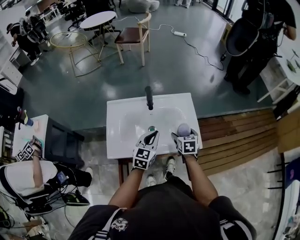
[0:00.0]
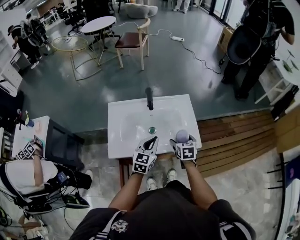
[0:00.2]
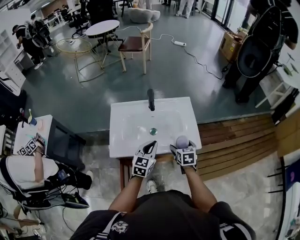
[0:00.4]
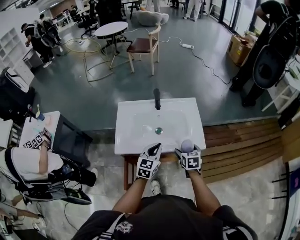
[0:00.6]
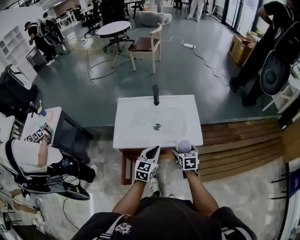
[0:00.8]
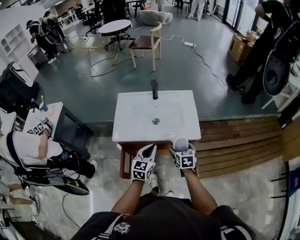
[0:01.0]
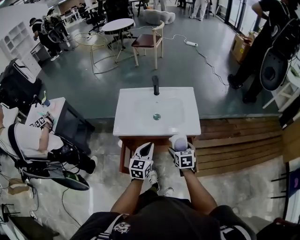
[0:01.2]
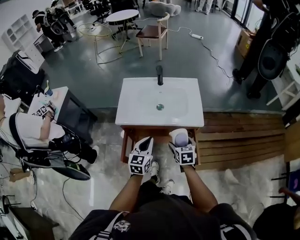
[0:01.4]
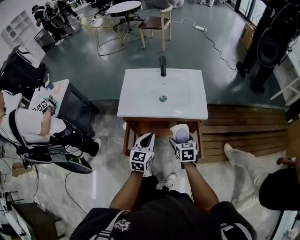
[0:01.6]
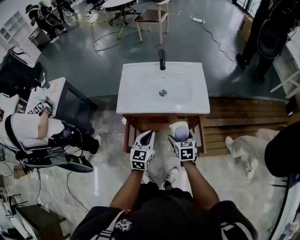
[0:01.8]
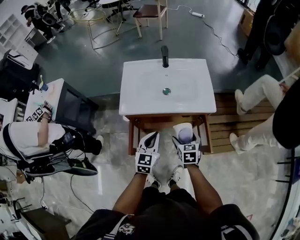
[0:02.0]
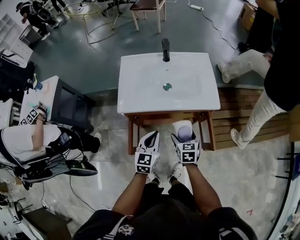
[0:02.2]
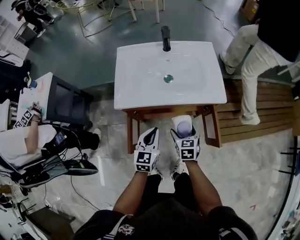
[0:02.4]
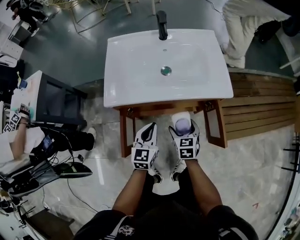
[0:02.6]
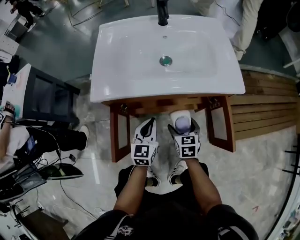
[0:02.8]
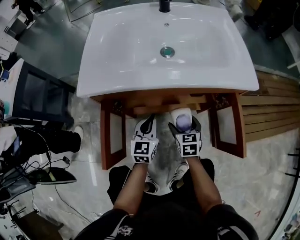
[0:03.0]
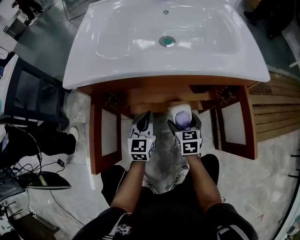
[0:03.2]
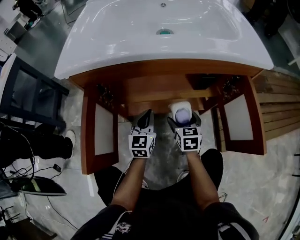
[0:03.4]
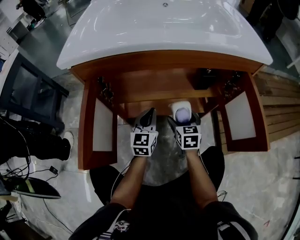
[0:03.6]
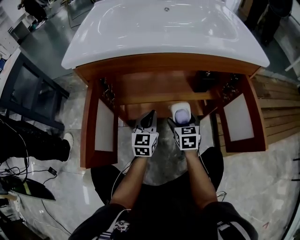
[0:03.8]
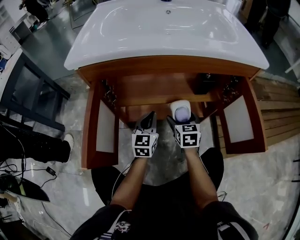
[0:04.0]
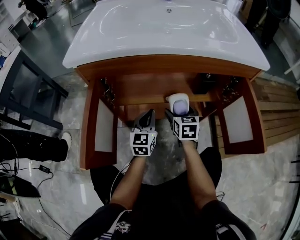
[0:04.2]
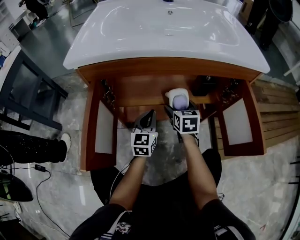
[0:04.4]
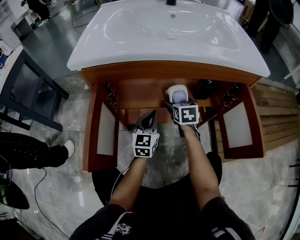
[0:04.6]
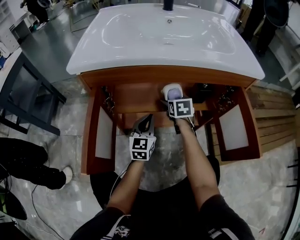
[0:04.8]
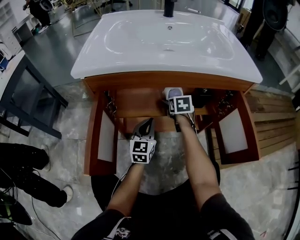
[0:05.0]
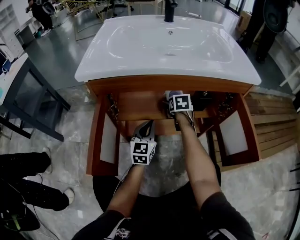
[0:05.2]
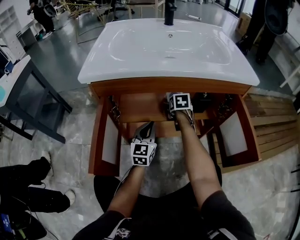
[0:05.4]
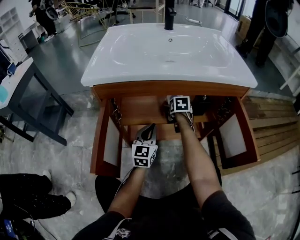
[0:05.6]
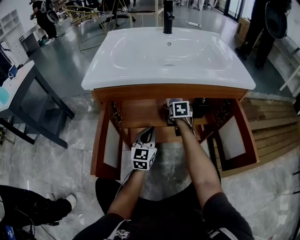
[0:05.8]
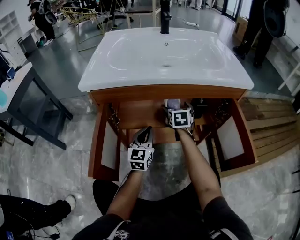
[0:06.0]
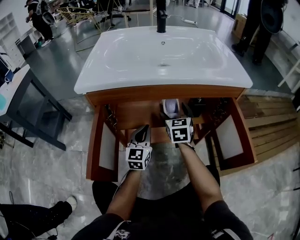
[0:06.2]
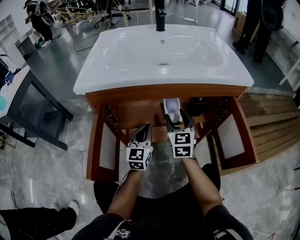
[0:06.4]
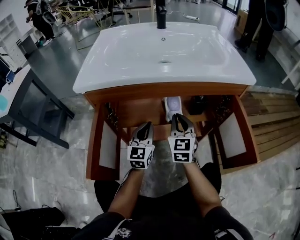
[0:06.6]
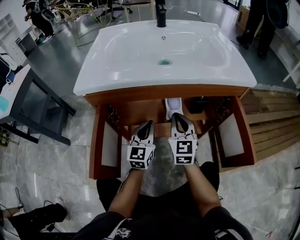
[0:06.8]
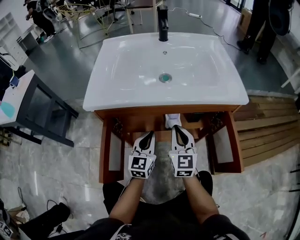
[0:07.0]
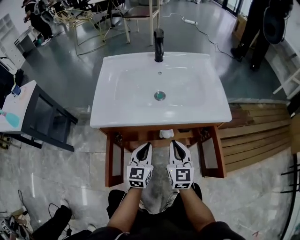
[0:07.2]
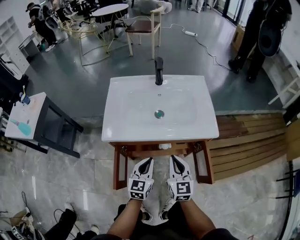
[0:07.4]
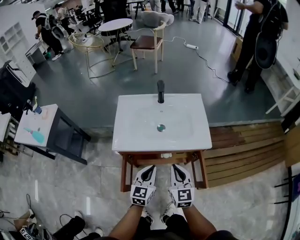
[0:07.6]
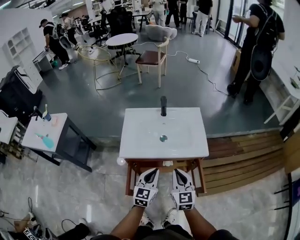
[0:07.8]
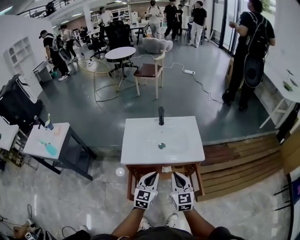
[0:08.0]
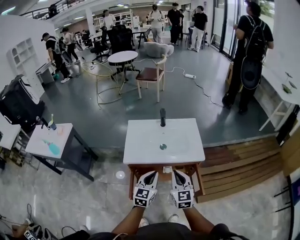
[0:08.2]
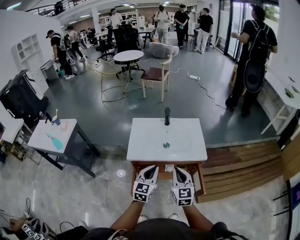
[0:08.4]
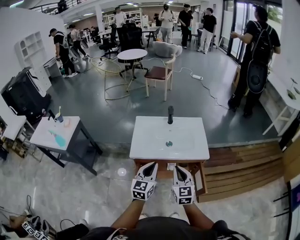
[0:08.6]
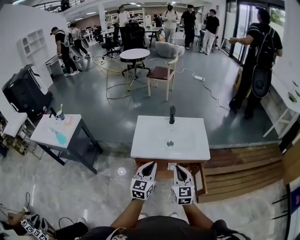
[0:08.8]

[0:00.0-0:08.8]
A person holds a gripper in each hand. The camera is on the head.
0:00.0 to 0:01.4: Both grippers travel together backward, some 25 cm.
0:01.4 to 0:03.0: The grippers both shift downward by about 35 cm.
0:03.0 to 0:04.4: The right gripper moves forward and downward, some 10 cm; the left gripper is displaced downward by roughly 10 cm.
0:04.4 to 0:05.8: The right gripper travels forward by about 10 cm.
0:05.8 to 0:07.4: The right gripper goes roughly 40 cm upward and backward, angles its fingers upward, by some 30 degrees, and closes; the left gripper heads upward, covering roughly 25 cm.
0:07.4 to 0:08.8: Both grippers travel together upward, some 25 cm.

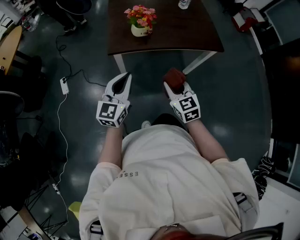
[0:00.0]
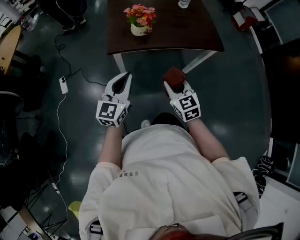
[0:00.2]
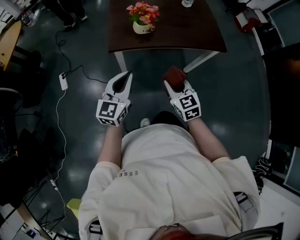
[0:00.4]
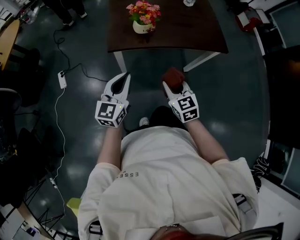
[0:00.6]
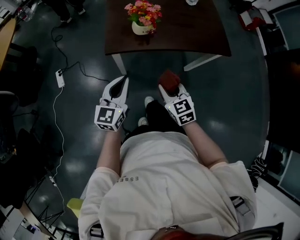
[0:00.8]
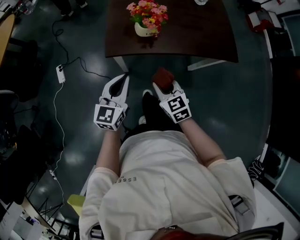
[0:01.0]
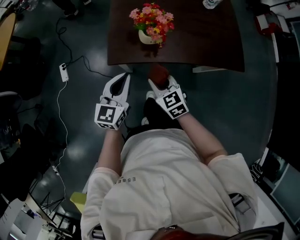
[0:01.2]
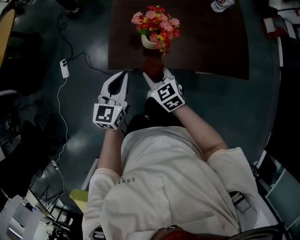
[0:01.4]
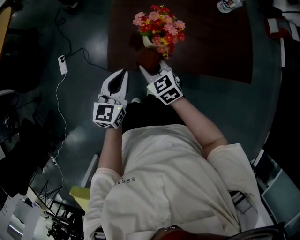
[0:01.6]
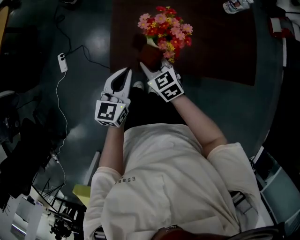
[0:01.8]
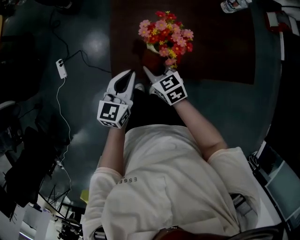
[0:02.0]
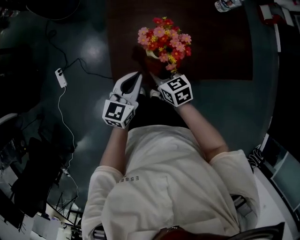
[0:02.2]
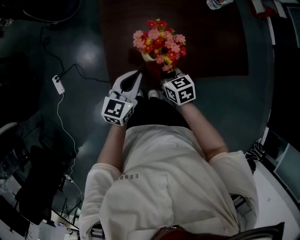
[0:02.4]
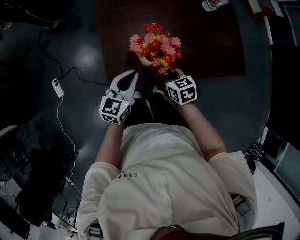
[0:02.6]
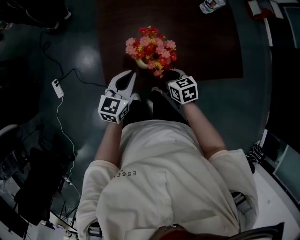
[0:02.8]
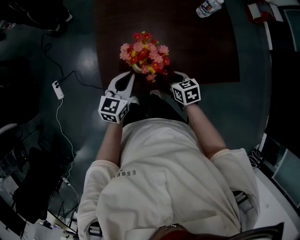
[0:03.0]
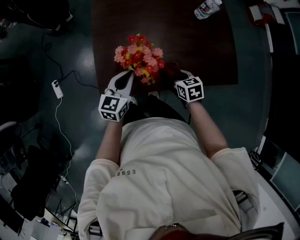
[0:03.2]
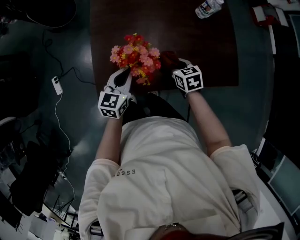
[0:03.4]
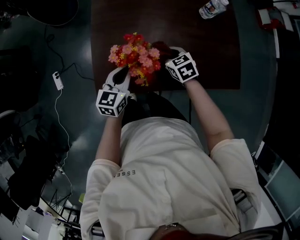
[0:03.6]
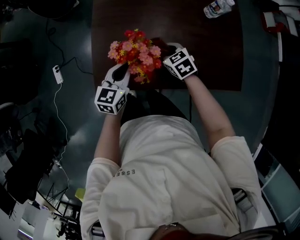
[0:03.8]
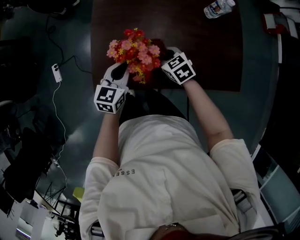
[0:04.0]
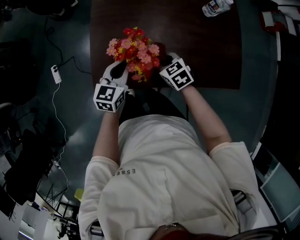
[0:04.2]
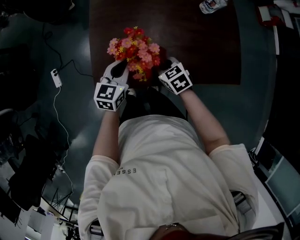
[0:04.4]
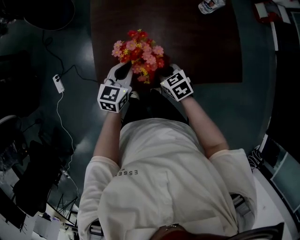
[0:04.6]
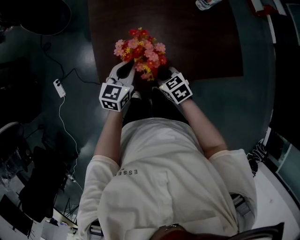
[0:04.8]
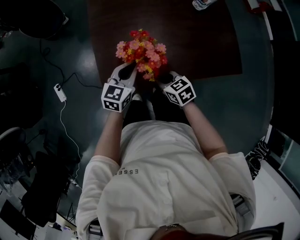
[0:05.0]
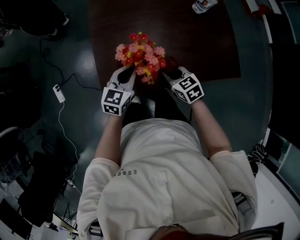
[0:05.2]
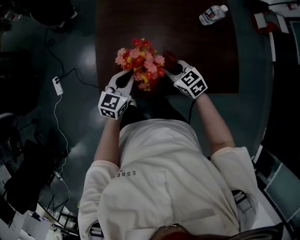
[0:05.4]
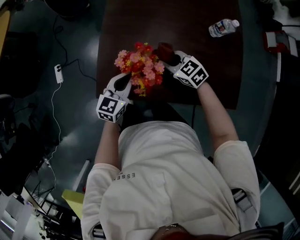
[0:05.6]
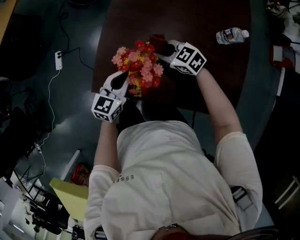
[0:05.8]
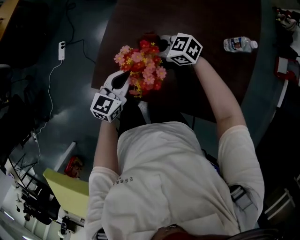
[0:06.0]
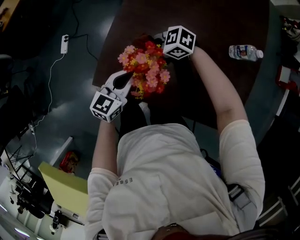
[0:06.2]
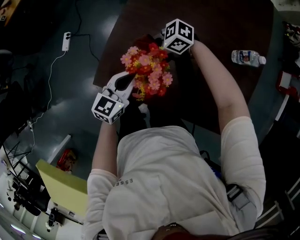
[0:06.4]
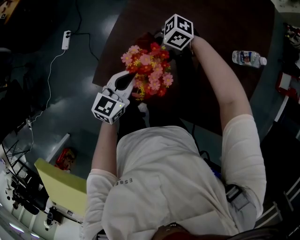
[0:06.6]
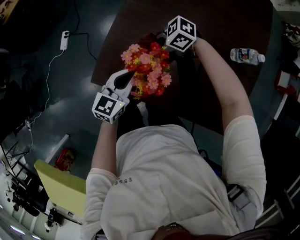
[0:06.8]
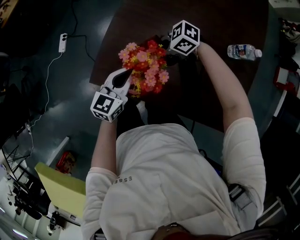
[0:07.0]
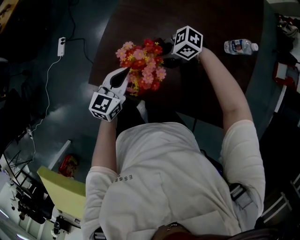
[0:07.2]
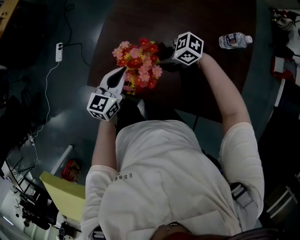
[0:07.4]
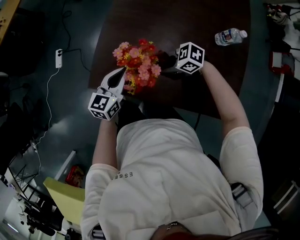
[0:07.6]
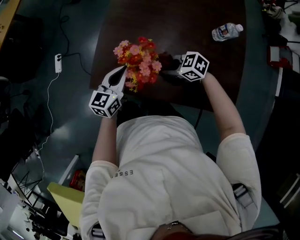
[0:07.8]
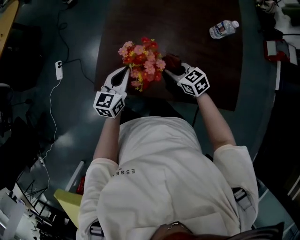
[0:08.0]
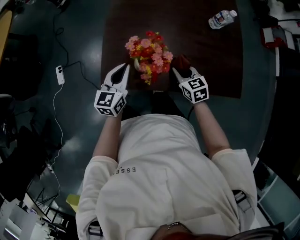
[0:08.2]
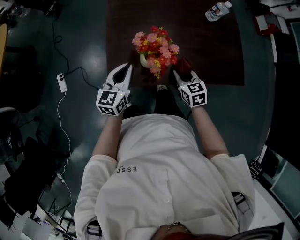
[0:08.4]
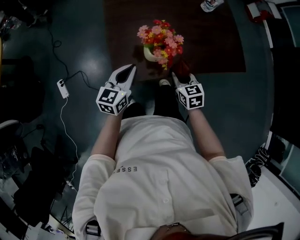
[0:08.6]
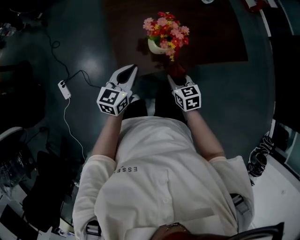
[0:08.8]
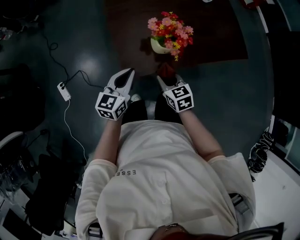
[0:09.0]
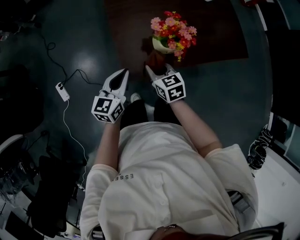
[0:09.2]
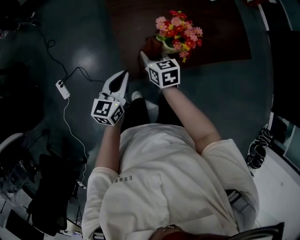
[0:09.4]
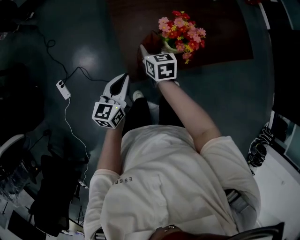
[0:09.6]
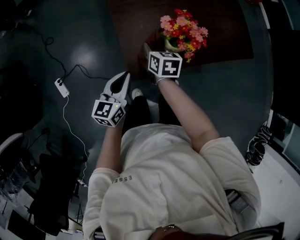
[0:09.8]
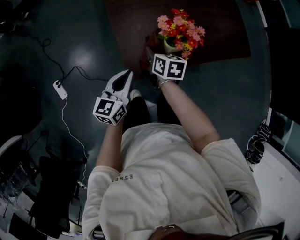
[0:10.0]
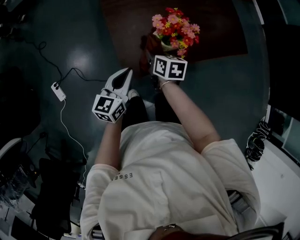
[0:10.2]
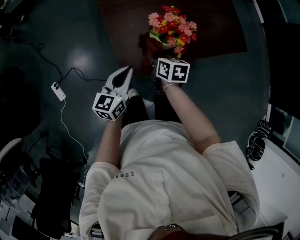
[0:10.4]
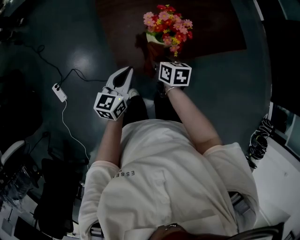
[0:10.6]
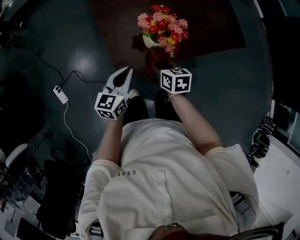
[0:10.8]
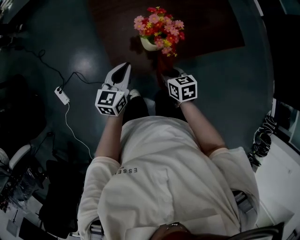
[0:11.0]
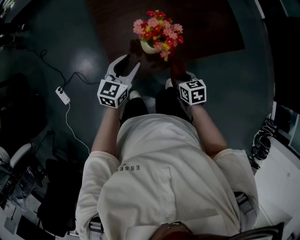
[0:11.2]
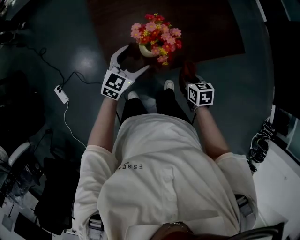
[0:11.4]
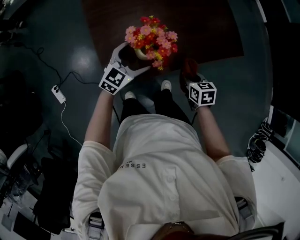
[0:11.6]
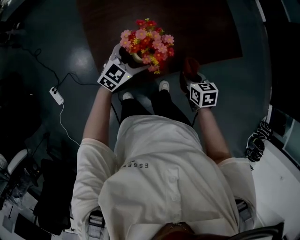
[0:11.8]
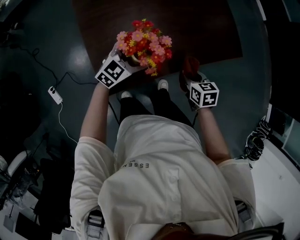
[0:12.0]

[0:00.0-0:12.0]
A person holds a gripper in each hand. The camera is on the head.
0:00.0 to 0:01.6: The left gripper moves forward and downward, some 25 cm. Meanwhile the right gripper travels forward and to the left by some 30 cm, and changes its angle by roughly 30 degrees.
0:01.6 to 0:03.0: The right gripper heads to the right, covering approximately 15 cm, and turns by roughly 30 degrees, while the left gripper moves forward and to the right, about 10 cm.
0:03.0 to 0:04.4: The right gripper changes its angle by roughly 20 degrees.
0:04.4 to 0:06.0: The right gripper ends up roughly 15 cm from where it was, and changes its angle by approximately 50 degrees.
0:06.0 to 0:07.6: The right gripper shifts by some 10 cm.
0:07.6 to 0:09.0: The left gripper ends up approximately 15 cm from where it was, and swivels some 30 degrees; the right gripper moves about 20 cm, and rotates approximately 90 degrees.
0:09.0 to 0:10.4: The right gripper goes some 10 cm forward, and turns by some 30 degrees.
0:10.4 to 0:12.0: The right gripper heads to the right, covering approximately 25 cm. The left gripper goes some 20 cm forward and to the right, rotates some 40 degrees, and opens its fingers.

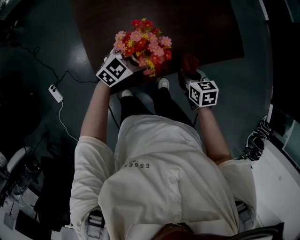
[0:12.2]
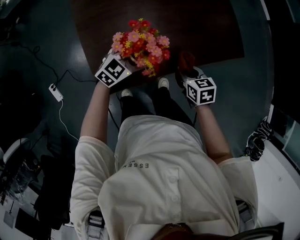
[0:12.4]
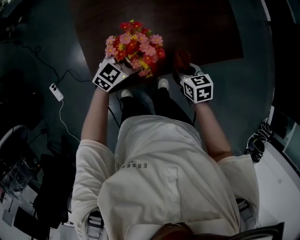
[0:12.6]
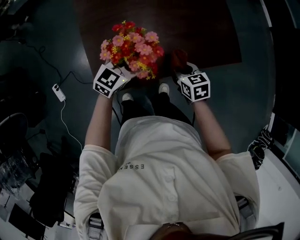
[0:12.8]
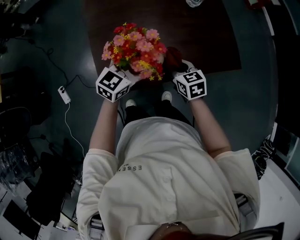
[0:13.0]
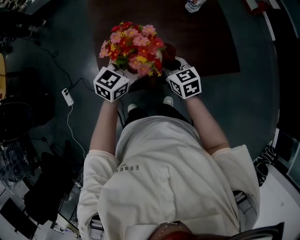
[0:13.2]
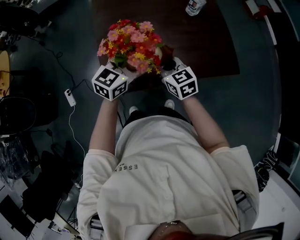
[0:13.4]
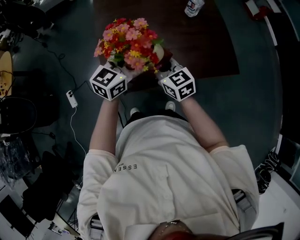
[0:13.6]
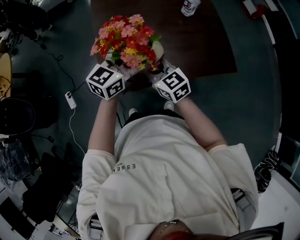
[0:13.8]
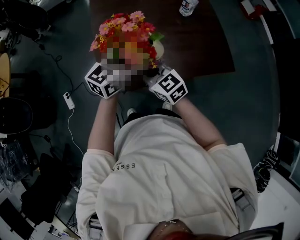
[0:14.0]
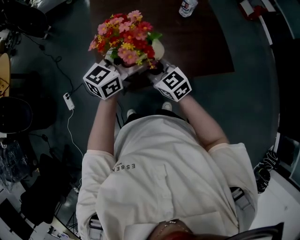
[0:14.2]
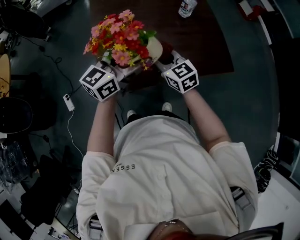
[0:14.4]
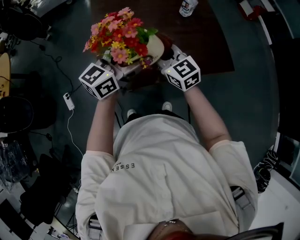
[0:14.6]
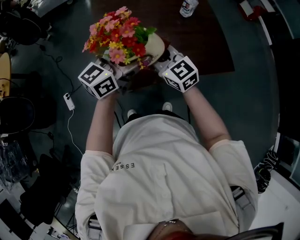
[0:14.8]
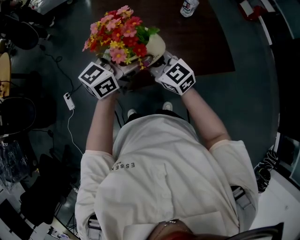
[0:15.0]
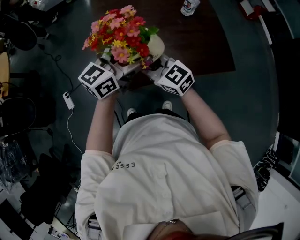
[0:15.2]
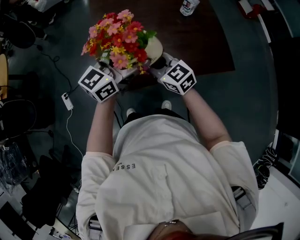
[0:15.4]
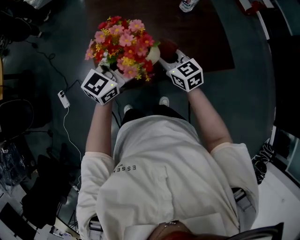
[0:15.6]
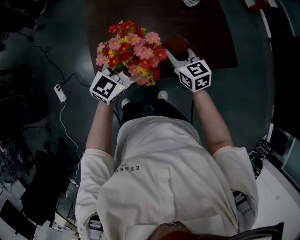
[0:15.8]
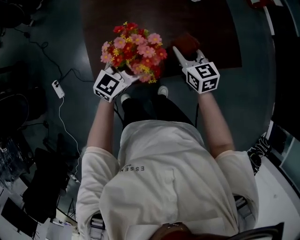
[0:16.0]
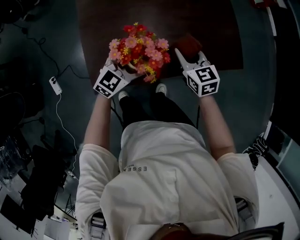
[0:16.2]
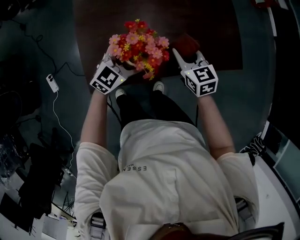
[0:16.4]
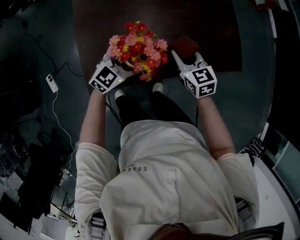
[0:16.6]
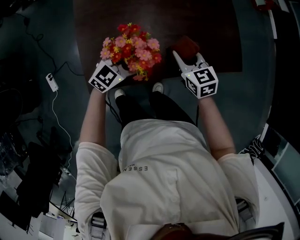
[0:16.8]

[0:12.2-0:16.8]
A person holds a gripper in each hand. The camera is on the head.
0:12.2 to 0:13.8: Both grippers move upward, about 20 cm. The right gripper points its fingers approximately 30 degrees further upward. The left gripper rotates some 30 degrees.
0:15.2 to 0:16.8: The left gripper shifts roughly 25 cm downward, and rotates about 30 degrees, while the right gripper heads to the right, downward and forward, covering approximately 25 cm, and changes its angle by roughly 30 degrees.
